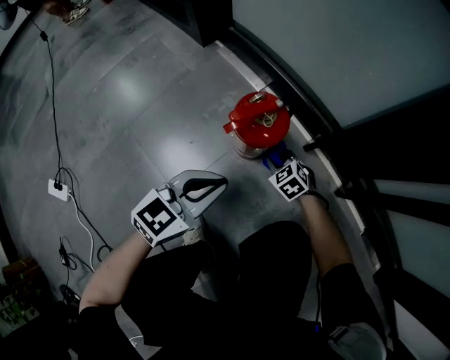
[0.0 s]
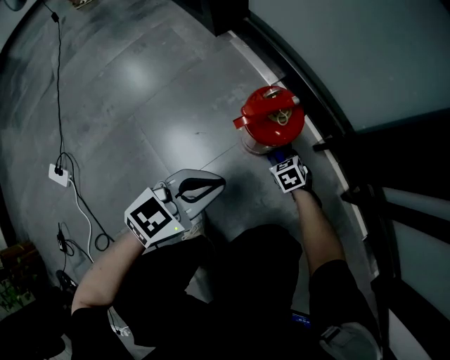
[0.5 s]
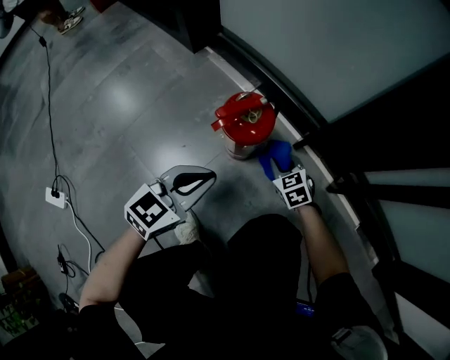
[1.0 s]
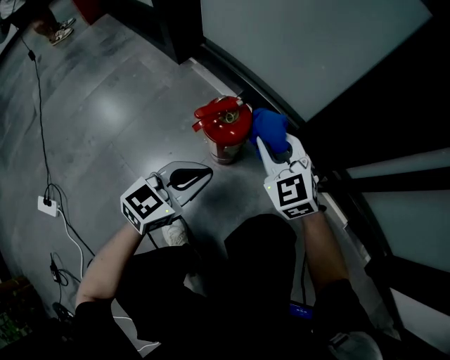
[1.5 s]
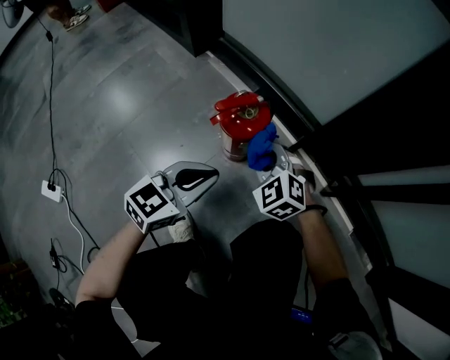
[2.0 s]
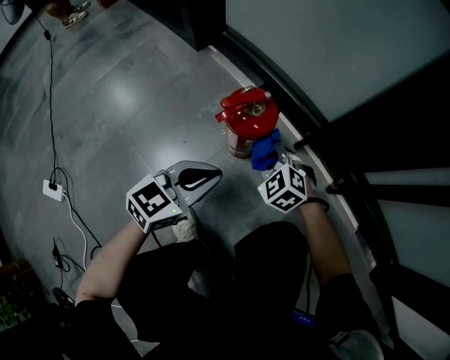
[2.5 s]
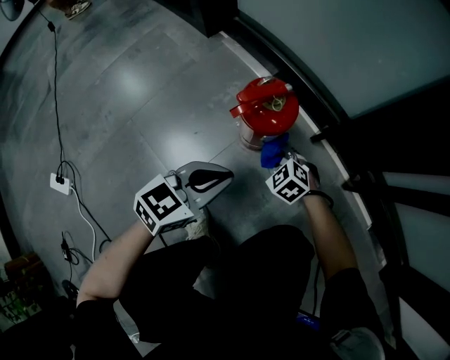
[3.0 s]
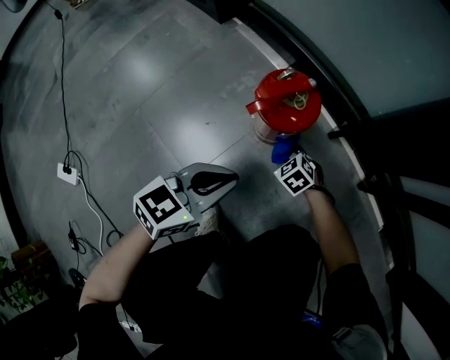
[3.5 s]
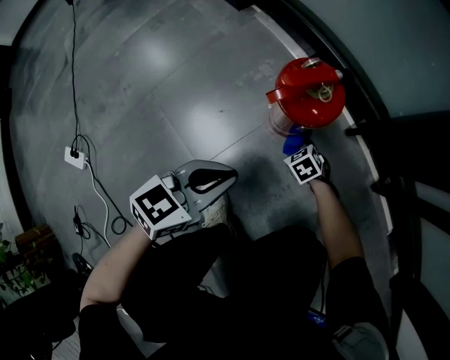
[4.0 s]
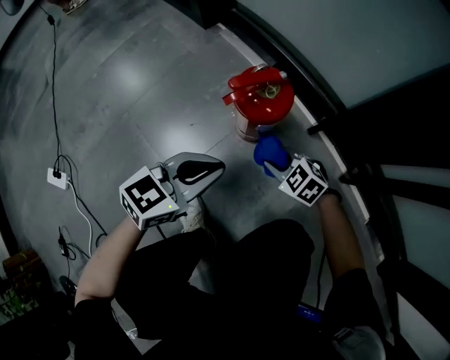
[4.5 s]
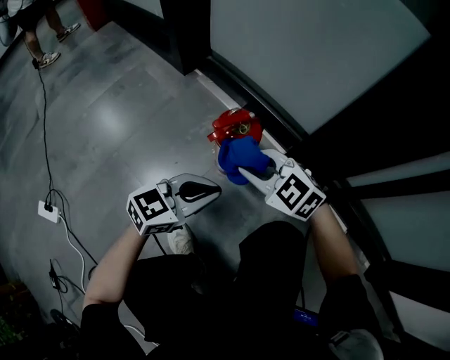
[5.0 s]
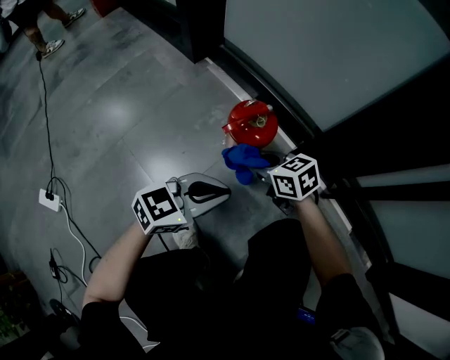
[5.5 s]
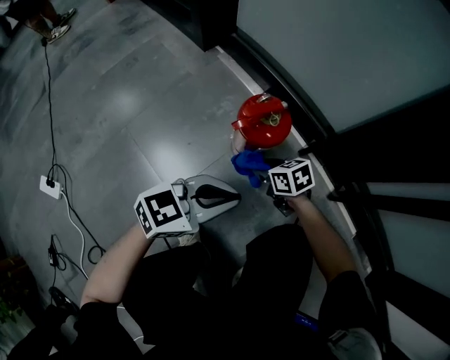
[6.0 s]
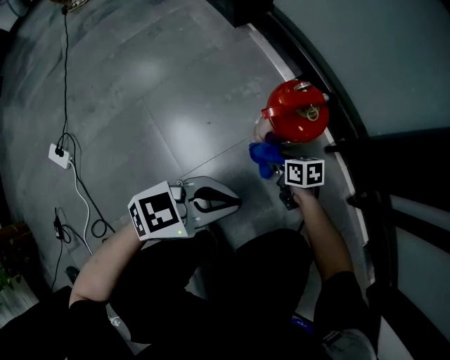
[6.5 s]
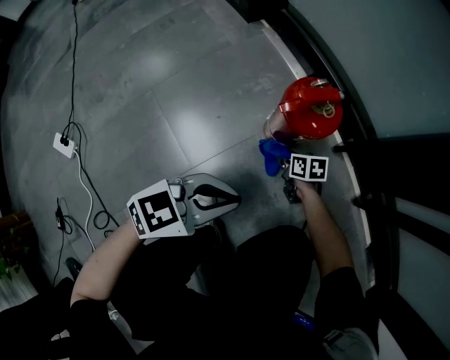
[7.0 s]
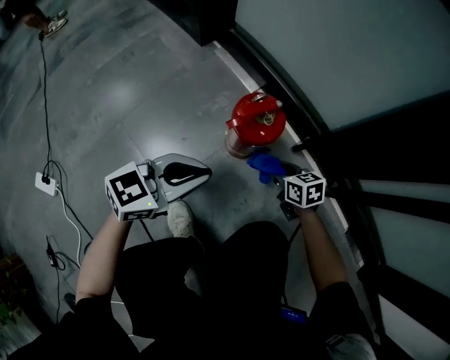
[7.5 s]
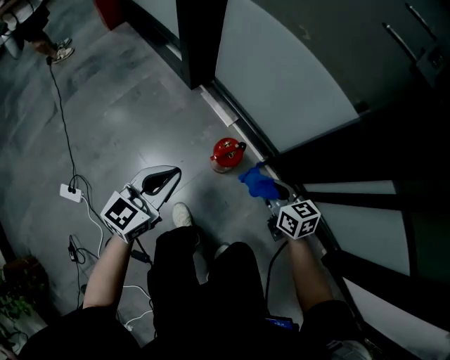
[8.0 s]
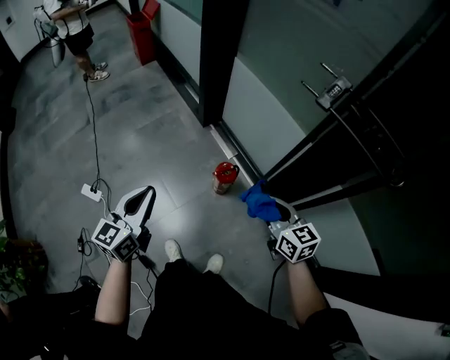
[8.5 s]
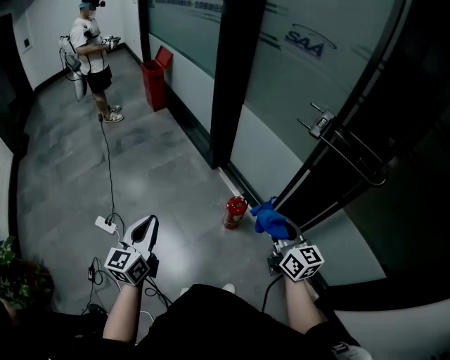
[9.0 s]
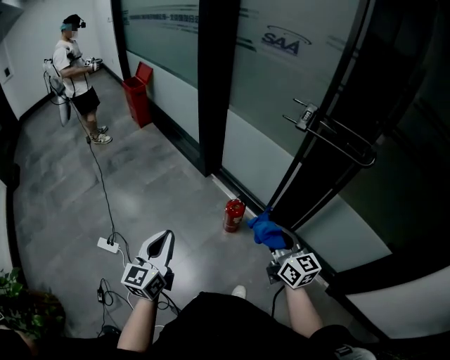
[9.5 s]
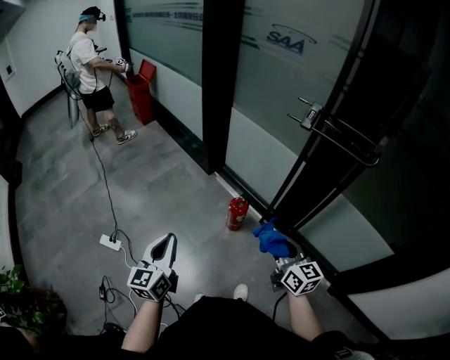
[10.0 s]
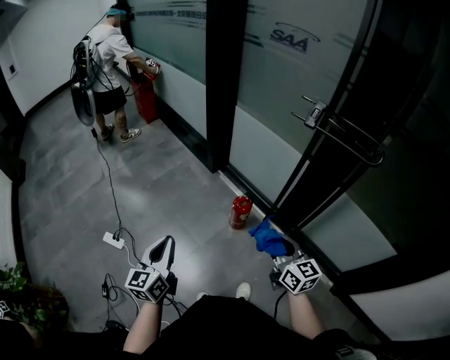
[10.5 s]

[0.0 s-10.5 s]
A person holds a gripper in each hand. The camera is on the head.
0.0 to 2.0 s: The right gripper swings up and down, approximately 35 cm each way, with 2 reversals, and rotates some 20 degrees.
2.0 to 4.0 s: The left gripper shifts some 10 cm downward and to the left; the right gripper shifts approximately 30 cm downward, and changes its angle by about 40 degrees.
4.0 to 6.5 s: The right gripper moves roughly 35 cm upward and comes back, and turns by some 40 degrees.
6.5 to 8.5 s: The two grippers go some 70 cm upward. The right gripper swivels about 40 degrees; the left gripper rotates some 60 degrees.
8.5 to 10.5 s: The right gripper is displaced backward, to the left and upward by some 20 cm, while the left gripper travels backward and to the left by roughly 15 cm.

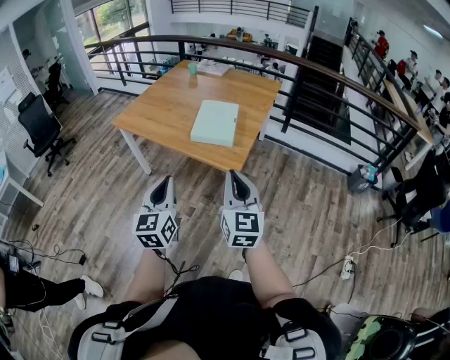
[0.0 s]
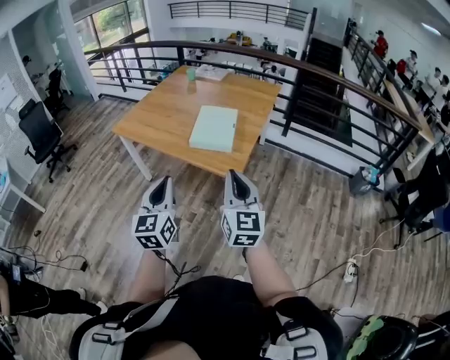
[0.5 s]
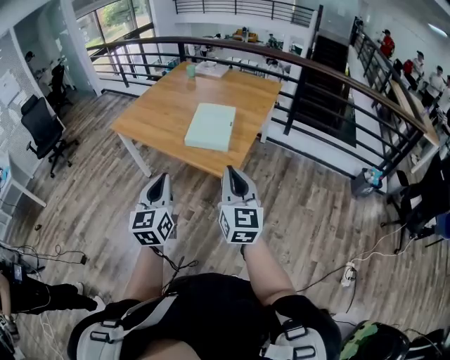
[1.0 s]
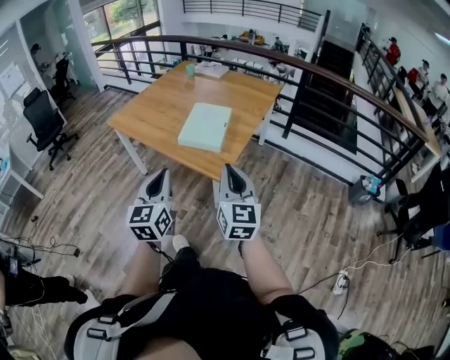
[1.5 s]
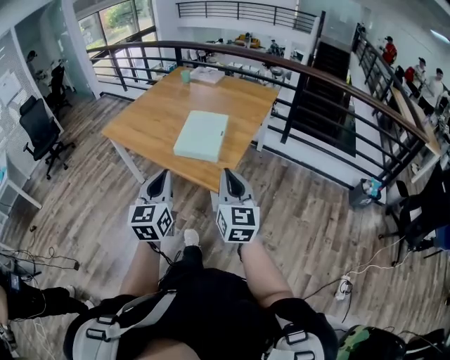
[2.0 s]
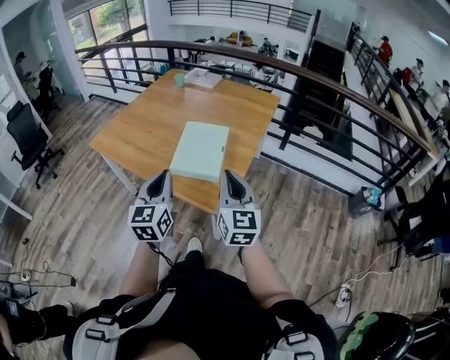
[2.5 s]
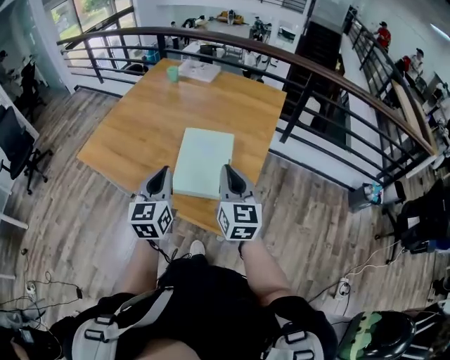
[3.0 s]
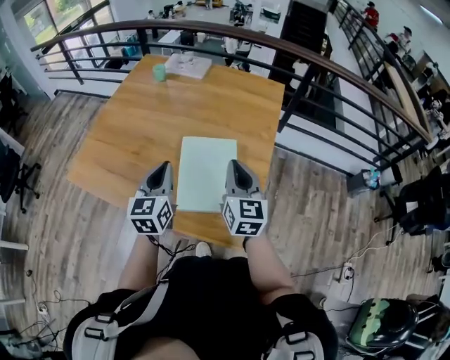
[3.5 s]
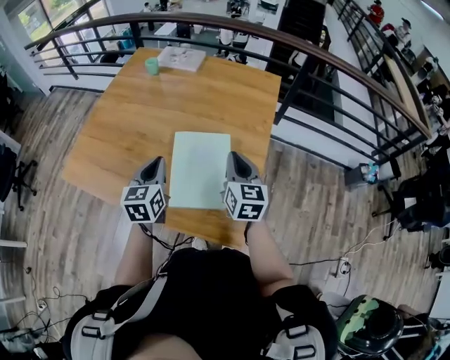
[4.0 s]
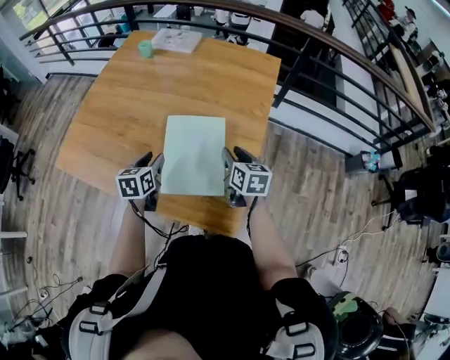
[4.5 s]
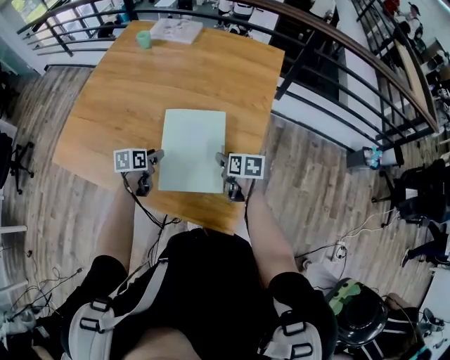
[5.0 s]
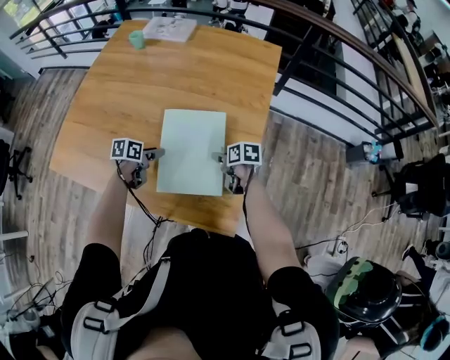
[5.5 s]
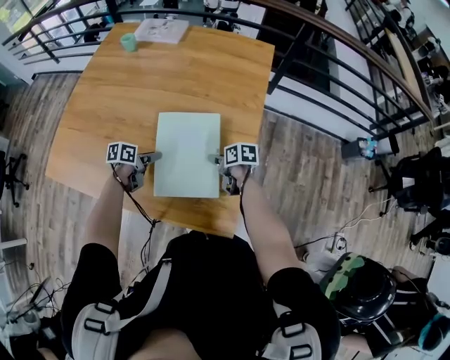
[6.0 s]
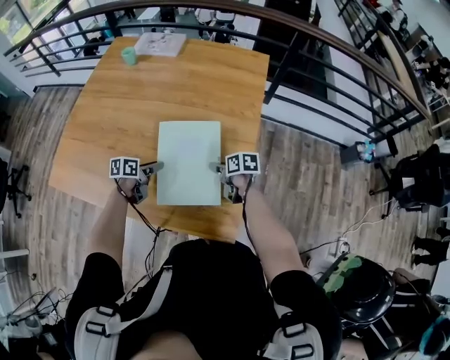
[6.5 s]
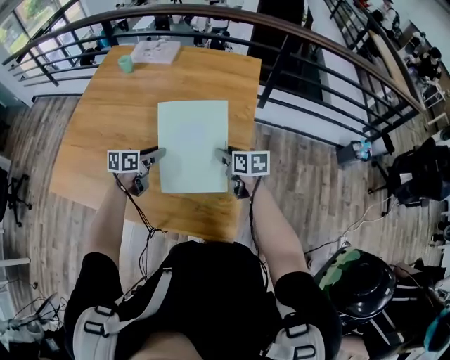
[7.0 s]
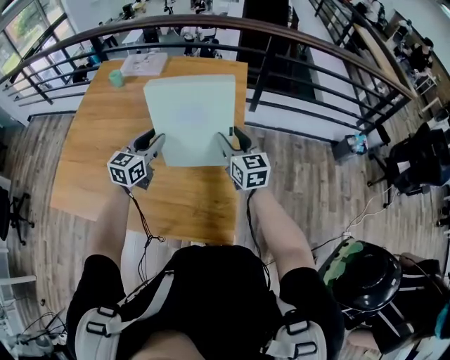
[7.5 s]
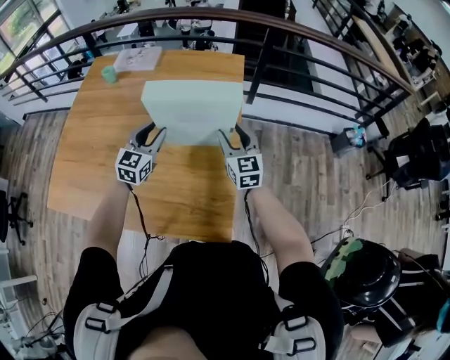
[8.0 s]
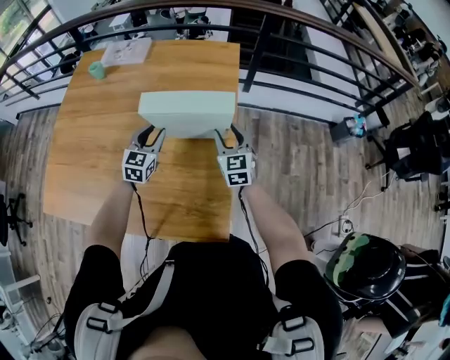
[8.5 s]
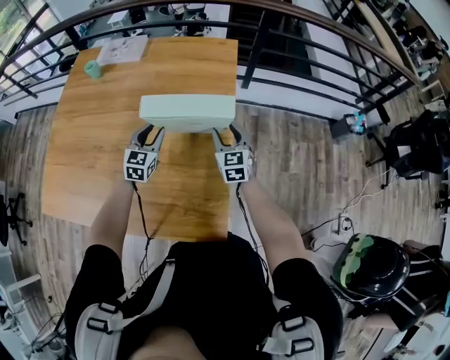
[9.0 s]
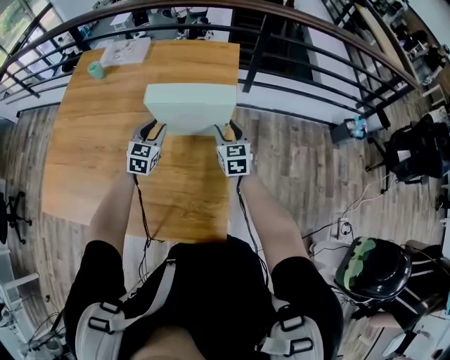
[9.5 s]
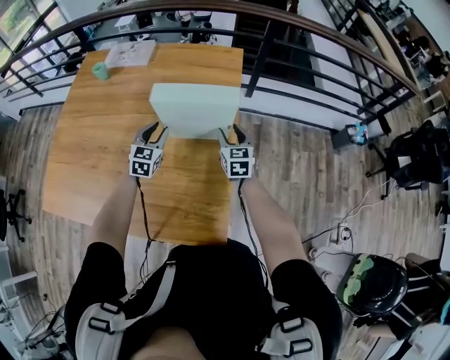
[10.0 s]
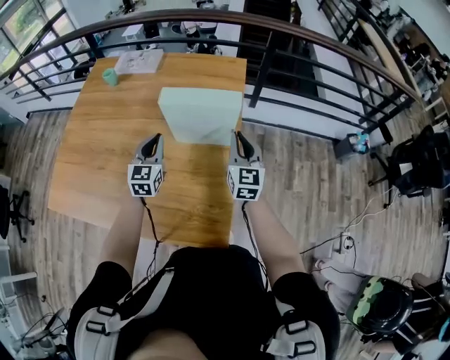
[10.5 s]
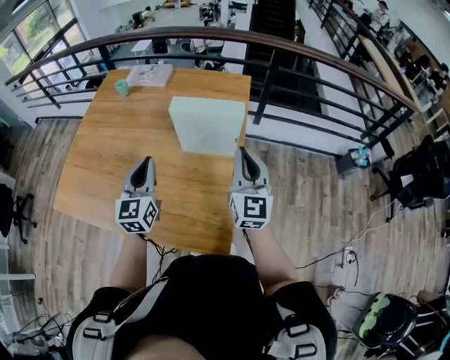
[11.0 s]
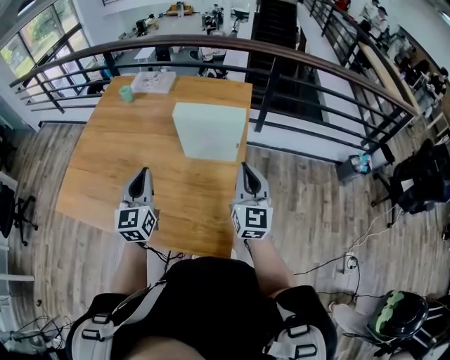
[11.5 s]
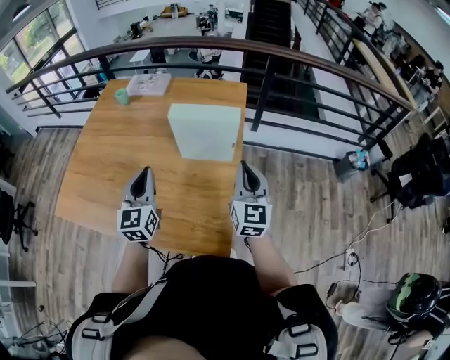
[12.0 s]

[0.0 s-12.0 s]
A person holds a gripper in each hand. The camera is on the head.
0.0 to 2.0 s: The right gripper shifts roughly 15 cm forward and to the right, while the left gripper is displaced to the right and forward by some 15 cm.
2.0 to 4.0 s: The two grippers travel together, forward, roughly 50 cm. The right gripper rotates about 20 degrees; the left gripper swivels about 20 degrees.
4.0 to 6.0 s: The two grippers go approximately 25 cm downward. The right gripper tilts its fingers roughly 30 degrees downward, and opens up. Meanwhile the left gripper swivels some 60 degrees, and opens up.
6.0 to 8.0 s: The right gripper shifts roughly 25 cm upward and to the right, and angles its fingers upward, by about 40 degrees. Meanwhile the left gripper moves upward, to the right and forward, about 25 cm, and rotates around the line of its fingers by approximately 60 degrees, clockwise from behind.
8.0 to 10.0 s: The two grippers go approximately 10 cm downward and forward.
10.0 to 12.0 s: The two grippers go about 25 cm upward and backward. The left gripper changes its angle by about 30 degrees, and closes its fingers, while the right gripper swivels approximately 30 degrees, and closes.

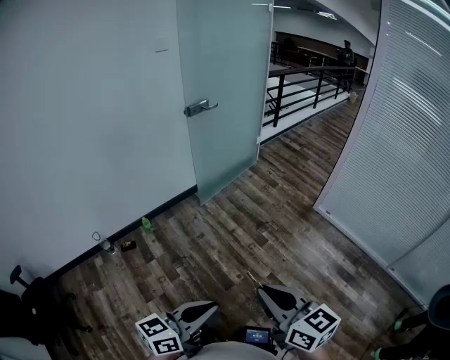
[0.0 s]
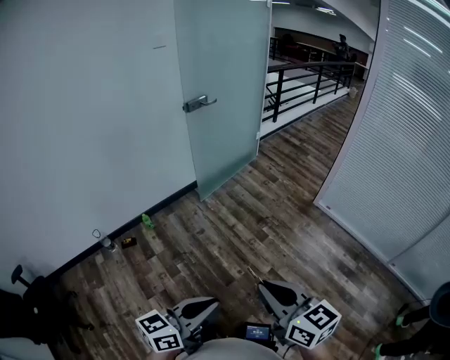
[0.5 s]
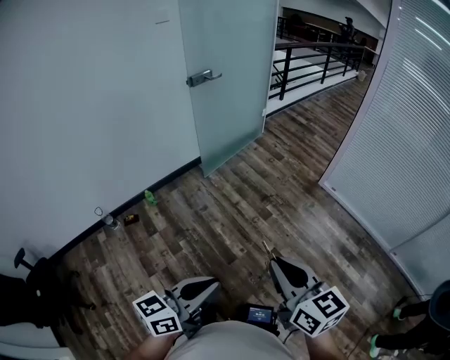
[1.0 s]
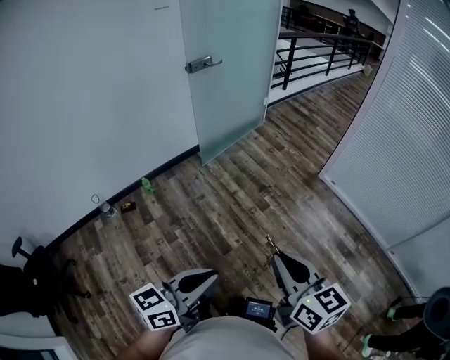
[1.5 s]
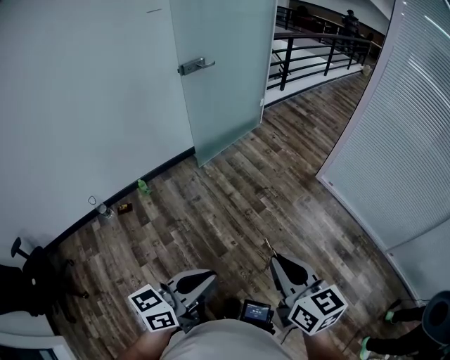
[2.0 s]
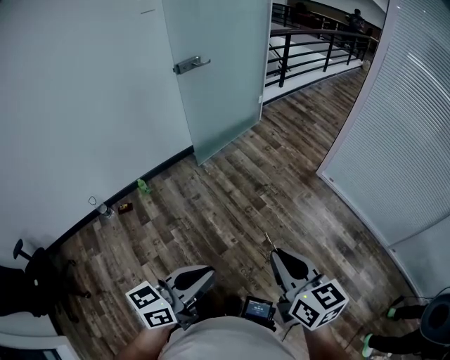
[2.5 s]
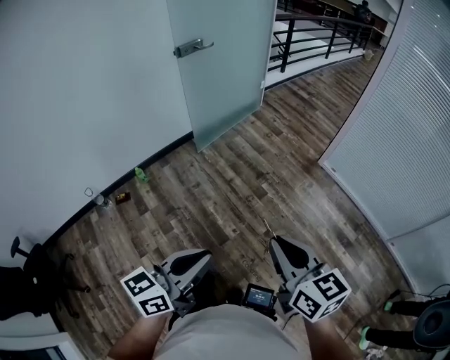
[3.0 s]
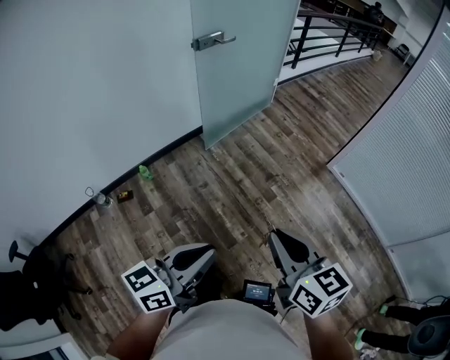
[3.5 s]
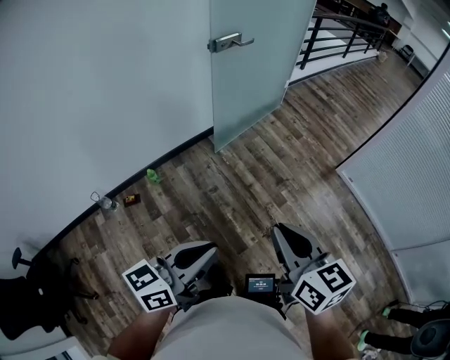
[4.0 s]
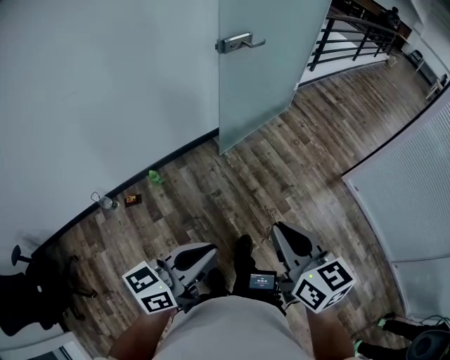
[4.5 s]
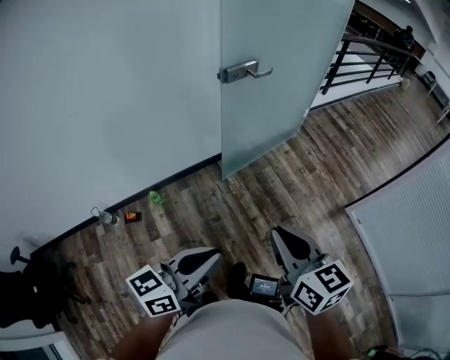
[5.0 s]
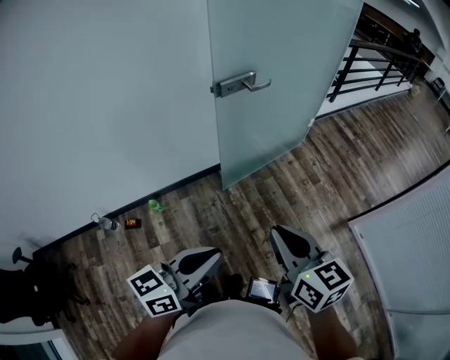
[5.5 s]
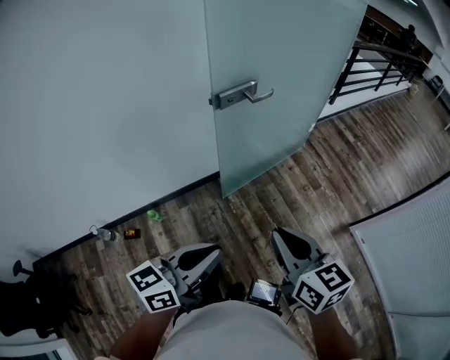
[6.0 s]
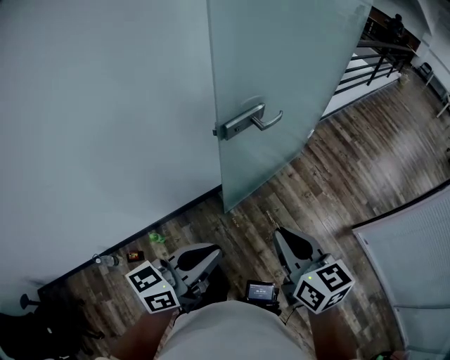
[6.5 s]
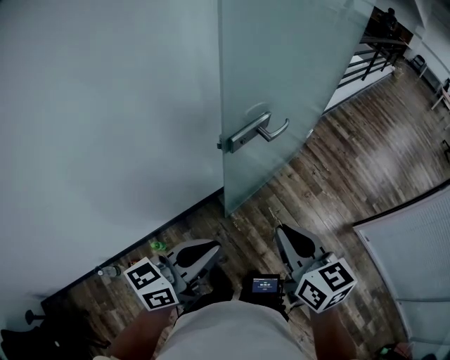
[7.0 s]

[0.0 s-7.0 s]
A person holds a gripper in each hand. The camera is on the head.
0.0 to 2.0 s: Both grippers travel together to the right, some 10 cm.
2.0 to 3.5 s: The grippers both shift to the left and forward by approximately 20 cm.
3.5 to 5.0 s: Both grippers move forward, approximately 25 cm.
5.0 to 7.0 s: Both grippers move forward, some 30 cm.
